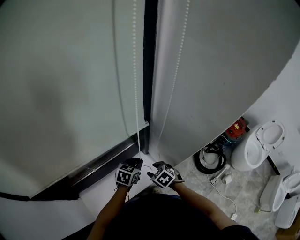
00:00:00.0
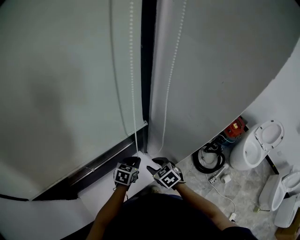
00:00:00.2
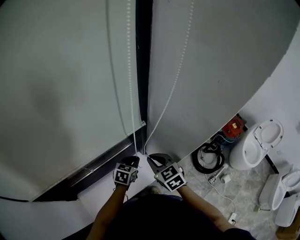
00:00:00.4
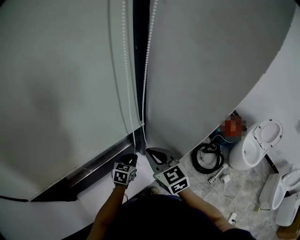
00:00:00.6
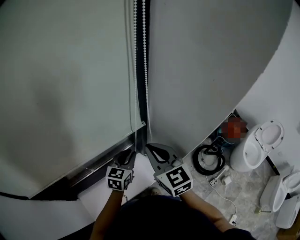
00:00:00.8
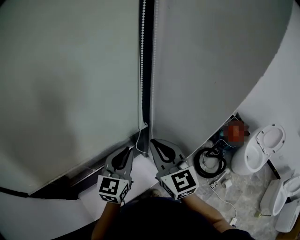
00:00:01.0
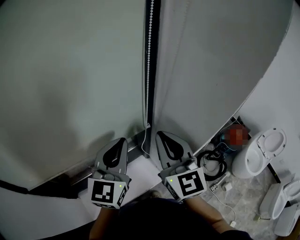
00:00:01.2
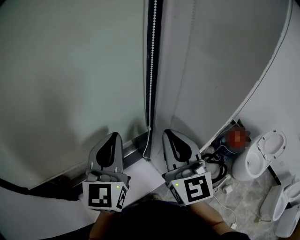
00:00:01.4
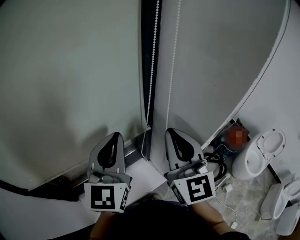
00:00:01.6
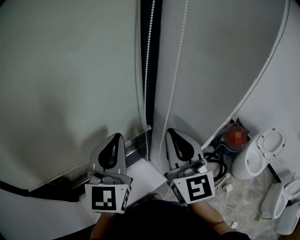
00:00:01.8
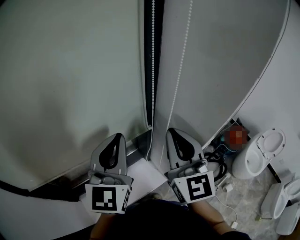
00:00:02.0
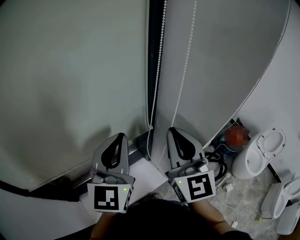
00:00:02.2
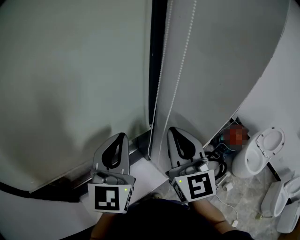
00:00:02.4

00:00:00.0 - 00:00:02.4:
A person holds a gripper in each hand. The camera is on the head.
00:00:00.0 - 00:00:01.2: Both grippers move upward, some 40 cm. The right gripper tips its fingers upward by about 60 degrees, and closes, while the left gripper angles its fingers upward, by some 40 degrees.
00:00:01.2 - 00:00:02.4: The left gripper moves upward, some 5 cm.

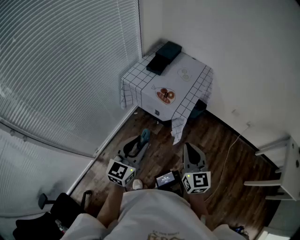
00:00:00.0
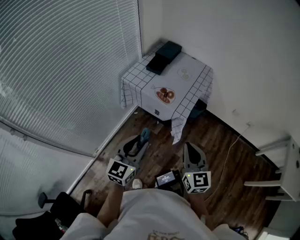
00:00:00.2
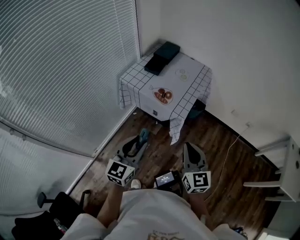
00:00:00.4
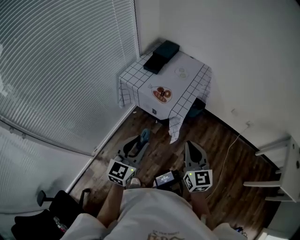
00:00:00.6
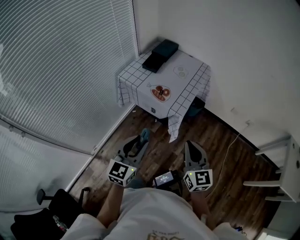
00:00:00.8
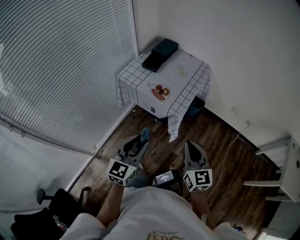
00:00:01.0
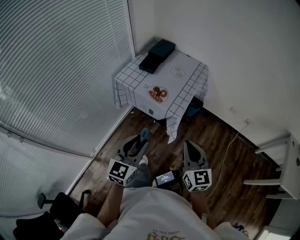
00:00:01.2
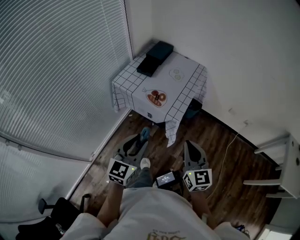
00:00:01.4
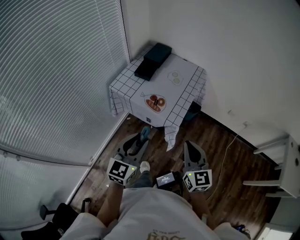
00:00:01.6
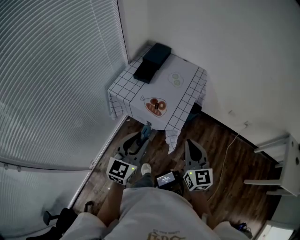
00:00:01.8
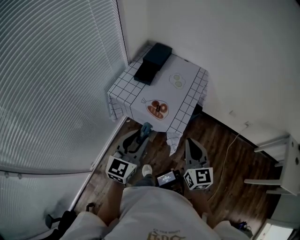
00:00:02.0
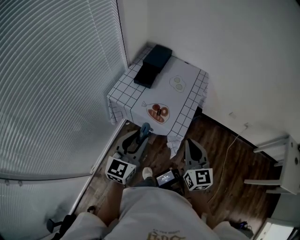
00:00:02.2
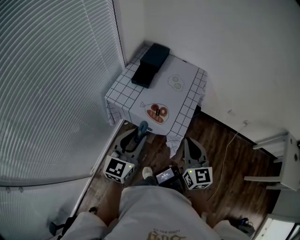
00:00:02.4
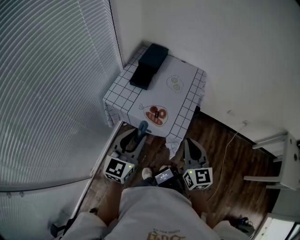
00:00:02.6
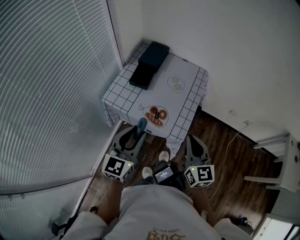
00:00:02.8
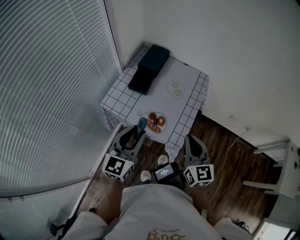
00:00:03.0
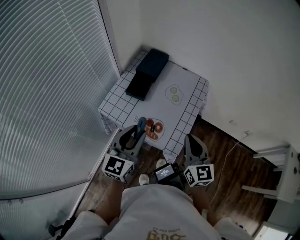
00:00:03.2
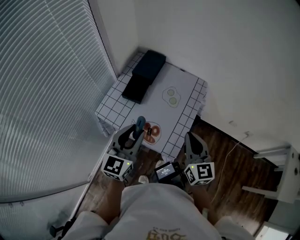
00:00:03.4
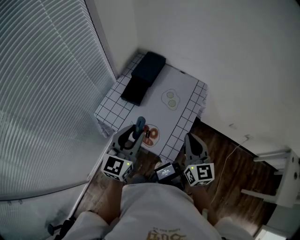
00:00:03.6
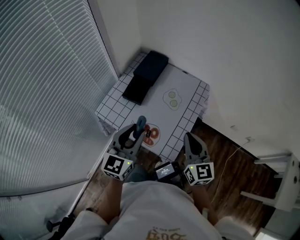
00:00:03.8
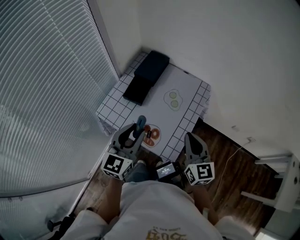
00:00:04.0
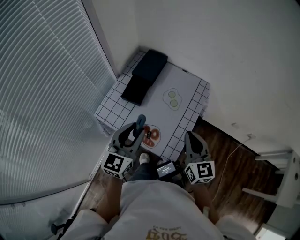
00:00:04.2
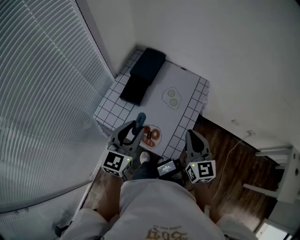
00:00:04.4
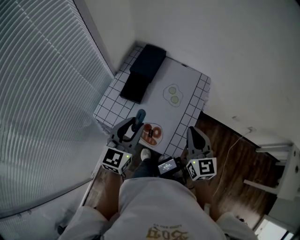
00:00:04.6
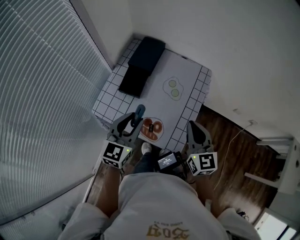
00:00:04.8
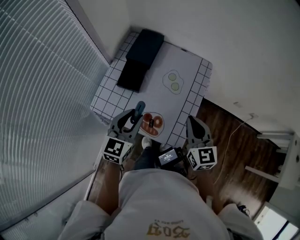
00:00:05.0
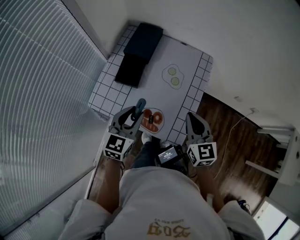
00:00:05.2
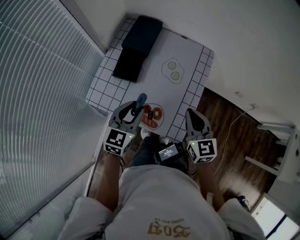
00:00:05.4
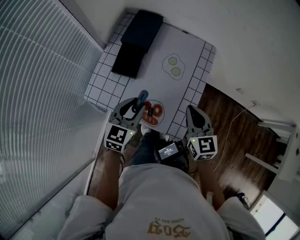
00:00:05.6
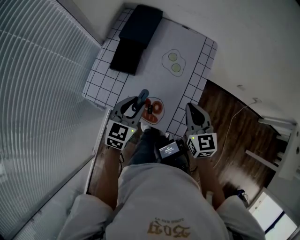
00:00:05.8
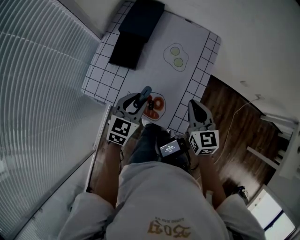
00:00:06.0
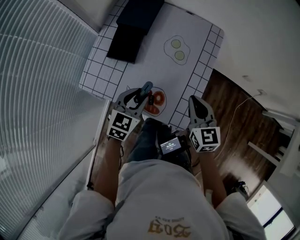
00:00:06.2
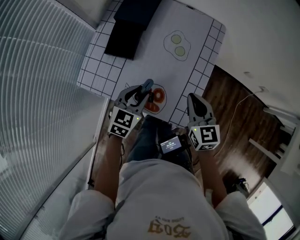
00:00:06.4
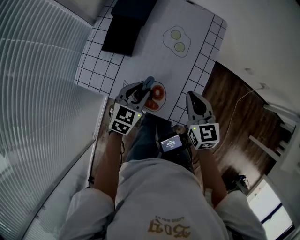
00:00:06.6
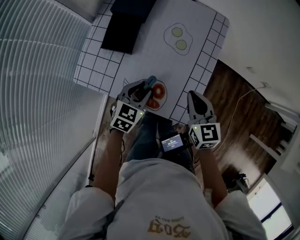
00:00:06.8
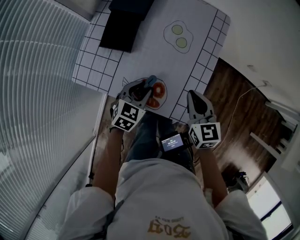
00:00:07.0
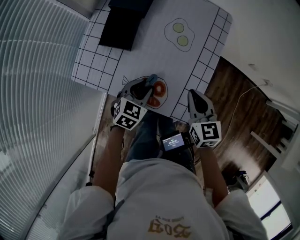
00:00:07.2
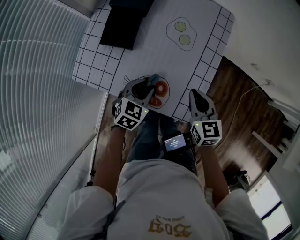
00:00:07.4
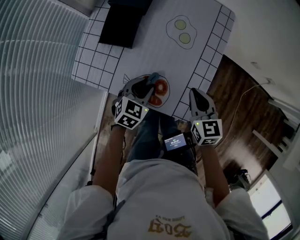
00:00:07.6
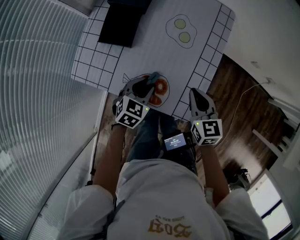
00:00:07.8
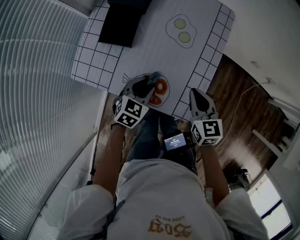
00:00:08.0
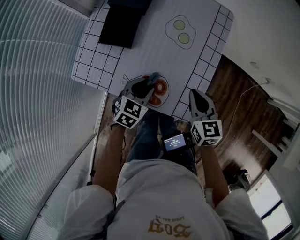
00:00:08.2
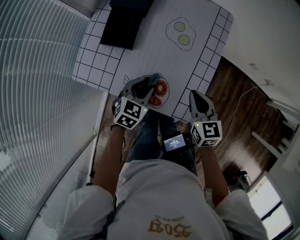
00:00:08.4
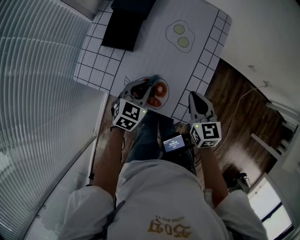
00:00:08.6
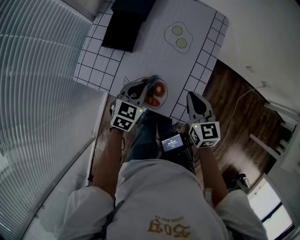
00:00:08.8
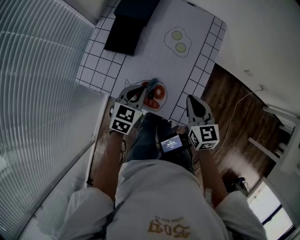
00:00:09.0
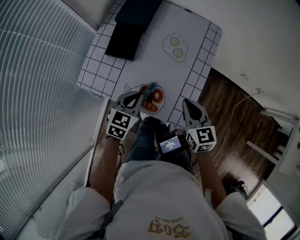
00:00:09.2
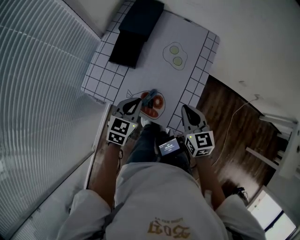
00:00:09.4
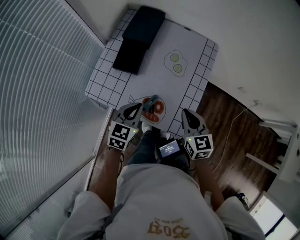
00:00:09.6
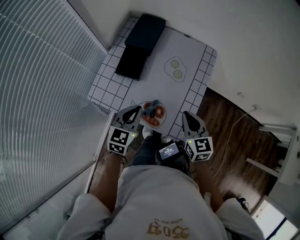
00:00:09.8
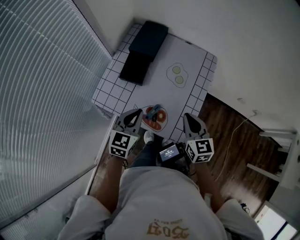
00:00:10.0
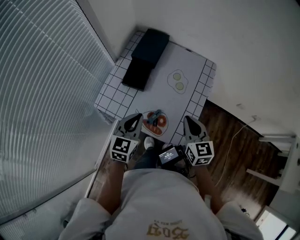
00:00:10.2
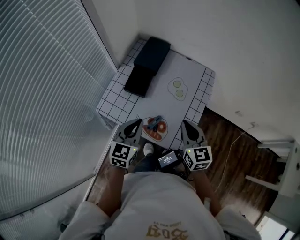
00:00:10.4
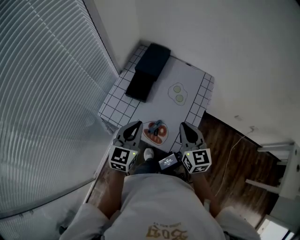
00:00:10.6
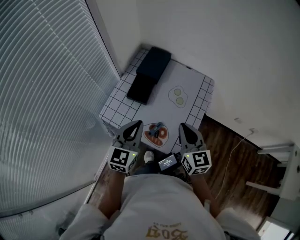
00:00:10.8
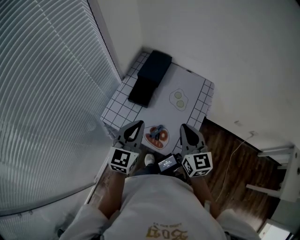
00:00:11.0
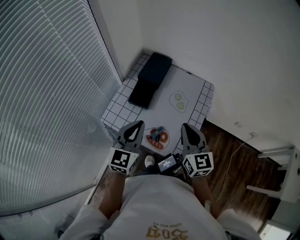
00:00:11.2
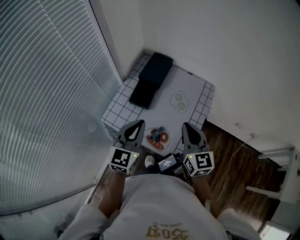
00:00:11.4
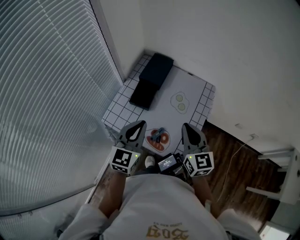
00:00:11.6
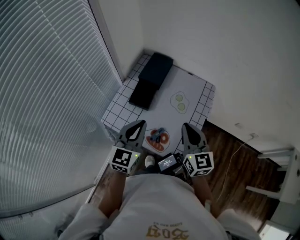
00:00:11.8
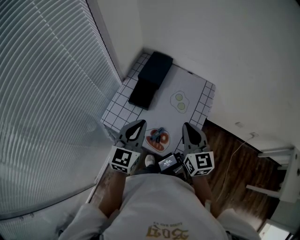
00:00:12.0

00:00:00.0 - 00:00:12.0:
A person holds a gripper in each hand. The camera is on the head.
00:00:00.0 - 00:00:01.6: Both grippers travel together forward, about 10 cm.
00:00:01.6 - 00:00:03.0: The two grippers go about 20 cm forward.
00:00:03.0 - 00:00:04.4: Both grippers travel together forward, approximately 10 cm.
00:00:04.4 - 00:00:06.0: Both grippers travel together downward, approximately 15 cm. The left gripper swivels about 30 degrees.
00:00:06.0 - 00:00:07.6: The grippers both shift downward by about 10 cm.
00:00:07.6 - 00:00:09.0: The left gripper heads upward, covering about 5 cm, and closes.
00:00:09.0 - 00:00:10.4: Both grippers travel together upward, some 15 cm. The left gripper changes its angle by some 20 degrees.
00:00:10.4 - 00:00:12.0: The grippers both shift upward by roughly 5 cm.

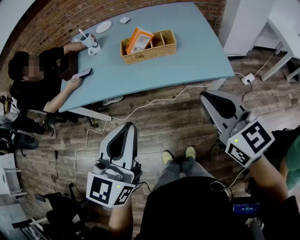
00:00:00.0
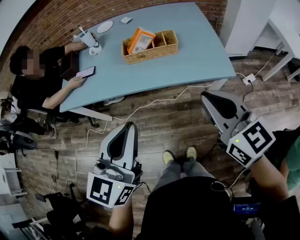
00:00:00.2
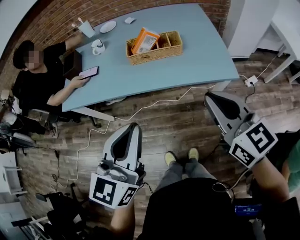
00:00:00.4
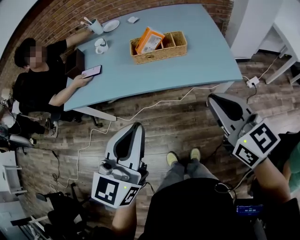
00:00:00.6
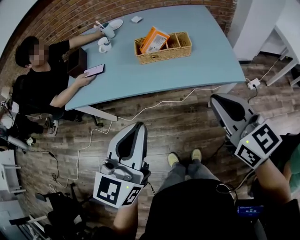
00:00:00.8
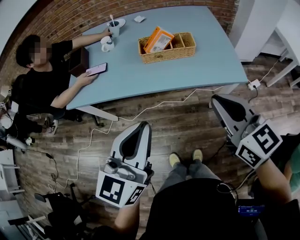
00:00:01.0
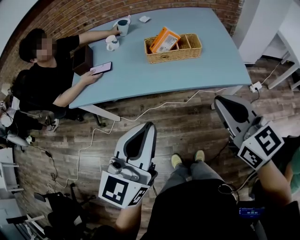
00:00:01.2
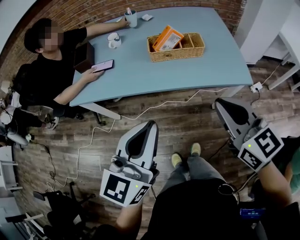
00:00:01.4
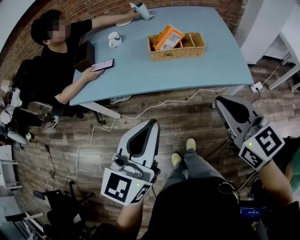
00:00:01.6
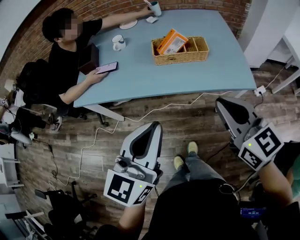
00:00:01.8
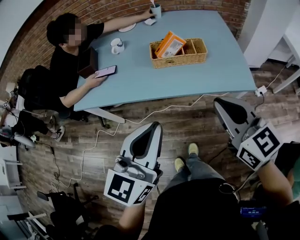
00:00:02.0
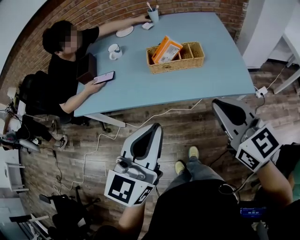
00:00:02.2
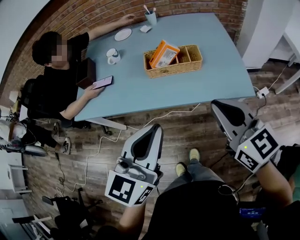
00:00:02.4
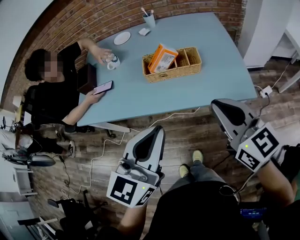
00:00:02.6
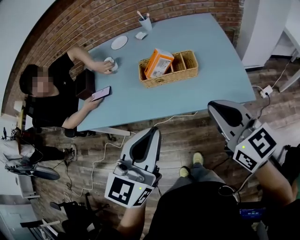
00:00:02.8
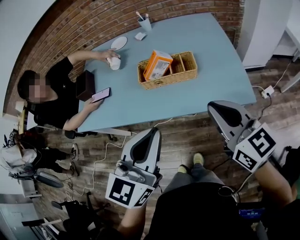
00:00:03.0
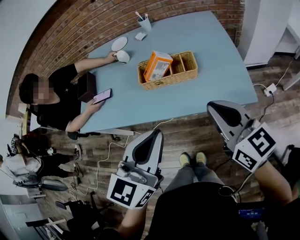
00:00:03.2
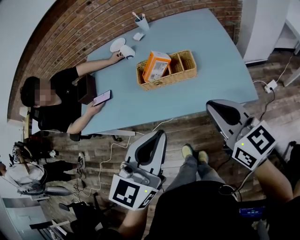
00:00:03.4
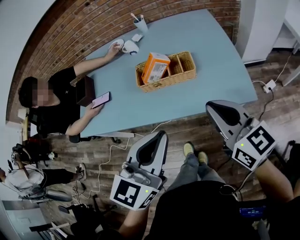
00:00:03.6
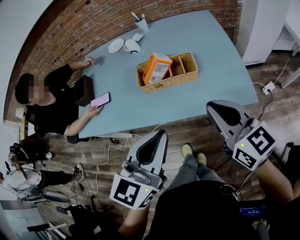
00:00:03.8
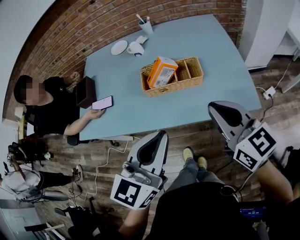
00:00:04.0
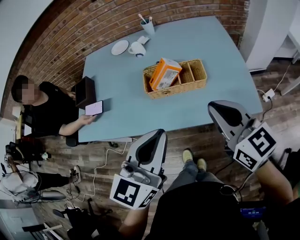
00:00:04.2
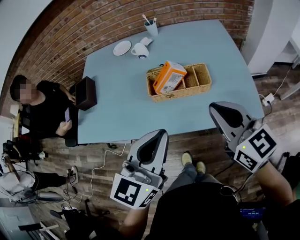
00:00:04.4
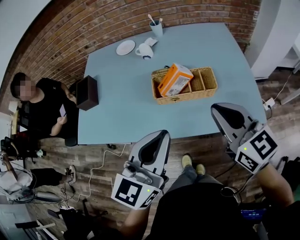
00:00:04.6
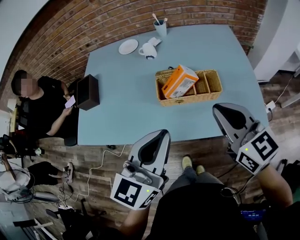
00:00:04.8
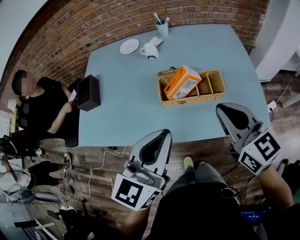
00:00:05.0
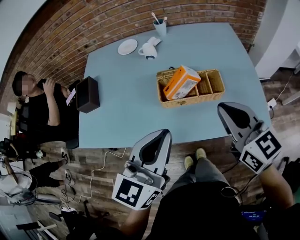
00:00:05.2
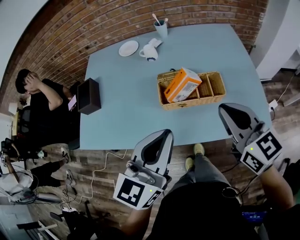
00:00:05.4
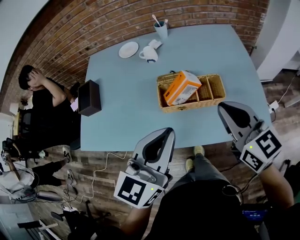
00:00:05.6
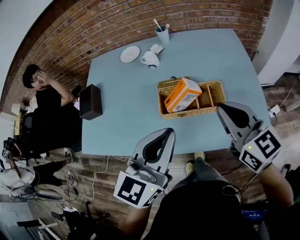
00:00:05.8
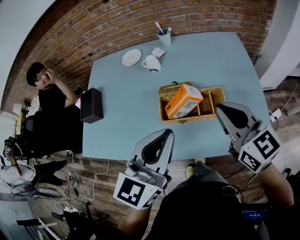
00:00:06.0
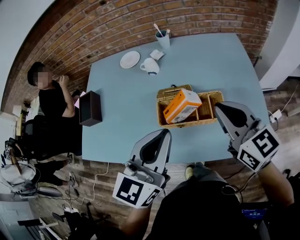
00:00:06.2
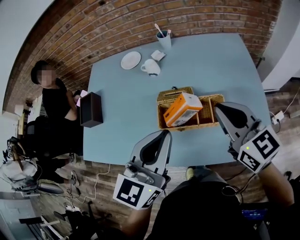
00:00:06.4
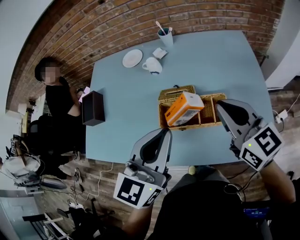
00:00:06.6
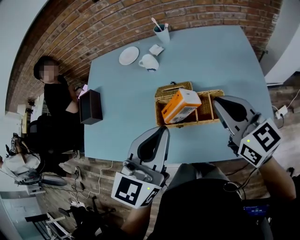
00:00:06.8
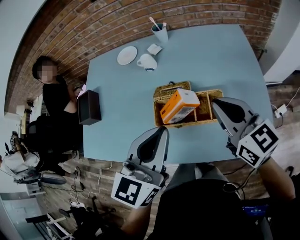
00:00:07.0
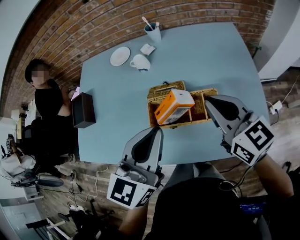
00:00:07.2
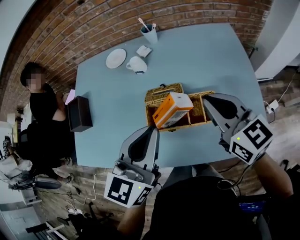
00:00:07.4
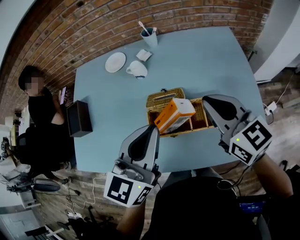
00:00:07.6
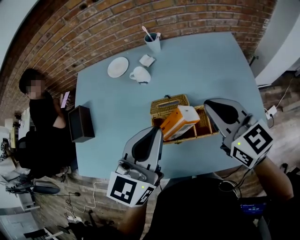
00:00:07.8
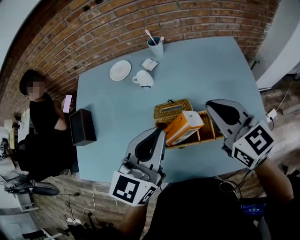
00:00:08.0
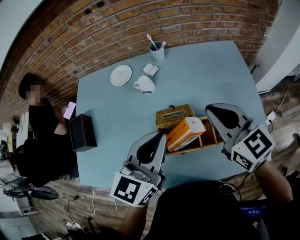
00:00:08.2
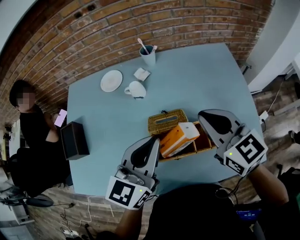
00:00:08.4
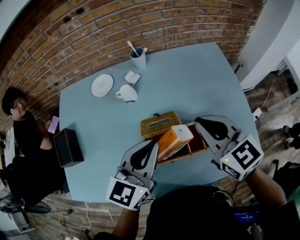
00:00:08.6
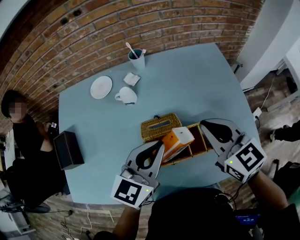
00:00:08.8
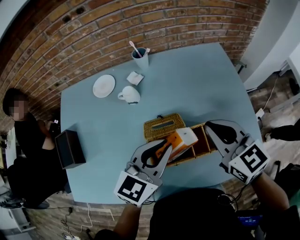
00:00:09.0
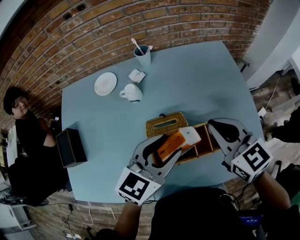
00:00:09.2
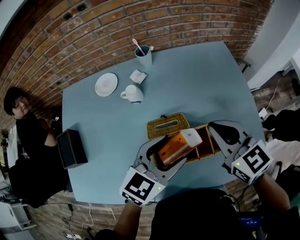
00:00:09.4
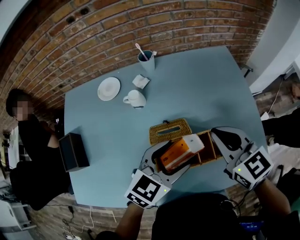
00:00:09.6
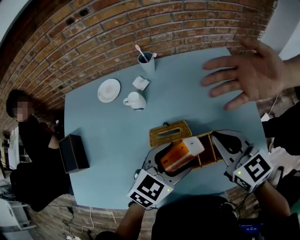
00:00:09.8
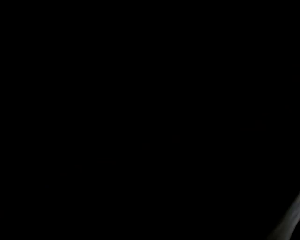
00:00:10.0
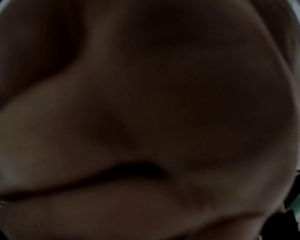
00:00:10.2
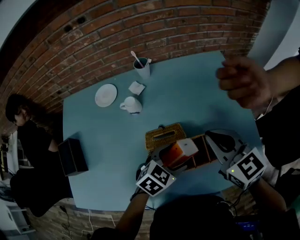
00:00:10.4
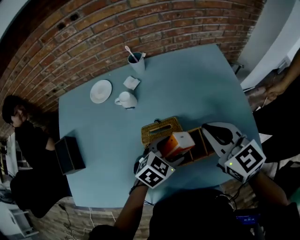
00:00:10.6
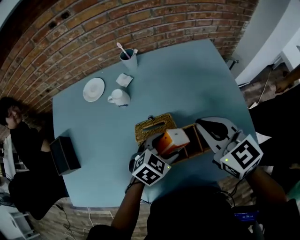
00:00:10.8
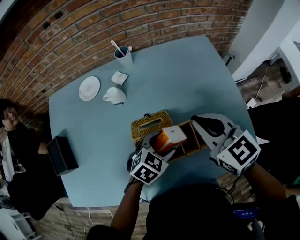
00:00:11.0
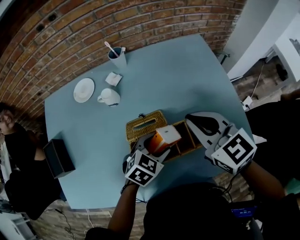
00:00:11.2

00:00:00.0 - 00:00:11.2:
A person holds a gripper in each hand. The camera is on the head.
00:00:00.0 - 00:00:01.6: Both grippers travel together to the left, about 10 cm.
00:00:01.6 - 00:00:03.2: The left gripper shifts about 15 cm to the right and forward. The right gripper moves forward and to the right, approximately 15 cm.
00:00:03.2 - 00:00:04.8: The two grippers go about 15 cm forward and to the left.
00:00:04.8 - 00:00:06.4: Both grippers move forward, roughly 15 cm.
00:00:06.4 - 00:00:08.0: The grippers both shift forward by some 10 cm.
00:00:08.0 - 00:00:09.6: The left gripper goes approximately 10 cm downward, swivels roughly 40 degrees, and opens its fingers; the right gripper changes place by roughly 5 cm.
00:00:09.6 - 00:00:11.2: The left gripper travels downward by approximately 10 cm, and turns by some 20 degrees.
